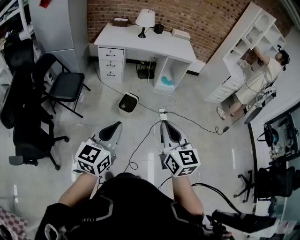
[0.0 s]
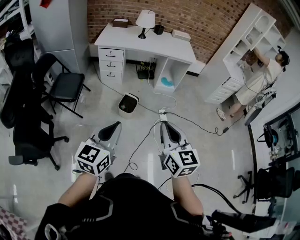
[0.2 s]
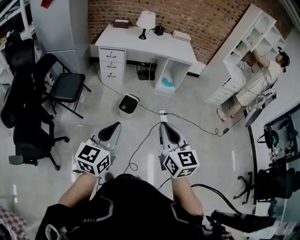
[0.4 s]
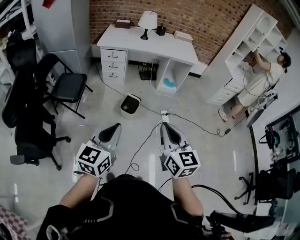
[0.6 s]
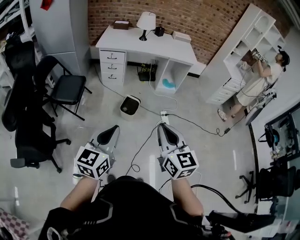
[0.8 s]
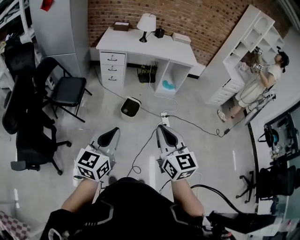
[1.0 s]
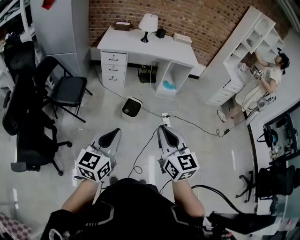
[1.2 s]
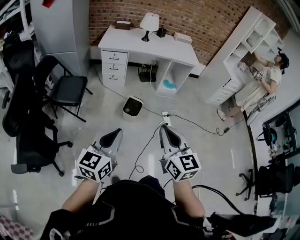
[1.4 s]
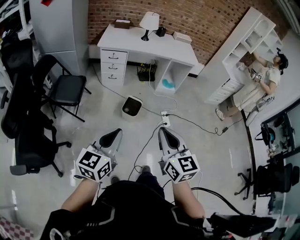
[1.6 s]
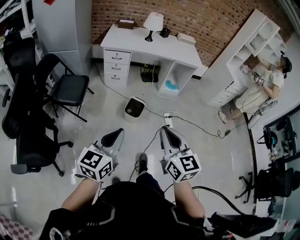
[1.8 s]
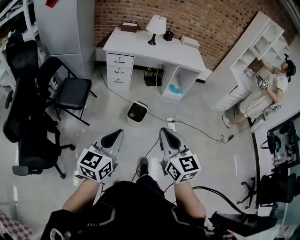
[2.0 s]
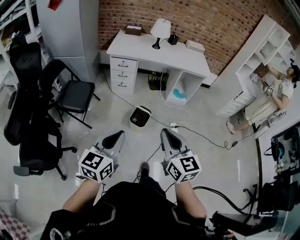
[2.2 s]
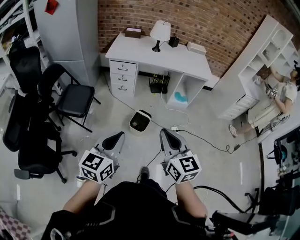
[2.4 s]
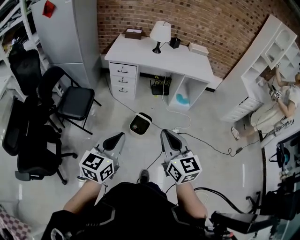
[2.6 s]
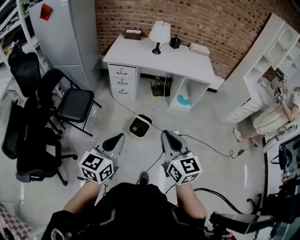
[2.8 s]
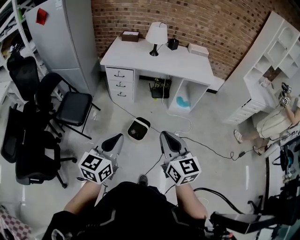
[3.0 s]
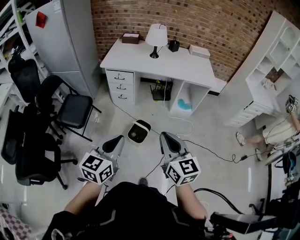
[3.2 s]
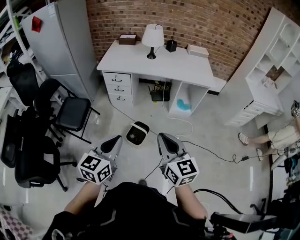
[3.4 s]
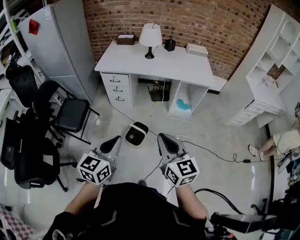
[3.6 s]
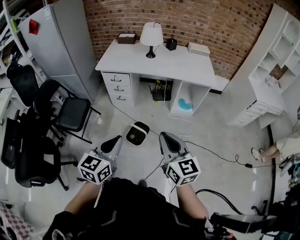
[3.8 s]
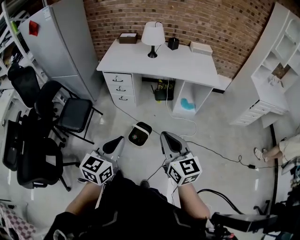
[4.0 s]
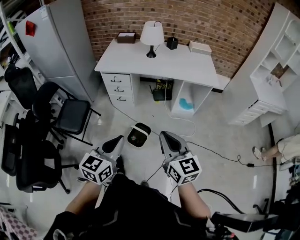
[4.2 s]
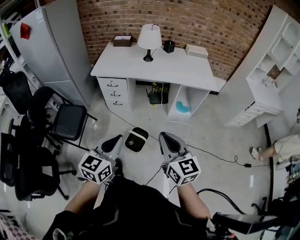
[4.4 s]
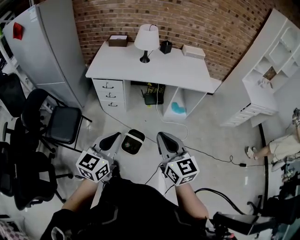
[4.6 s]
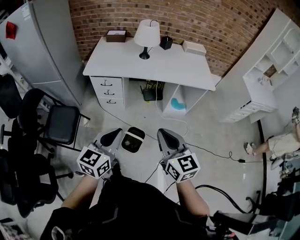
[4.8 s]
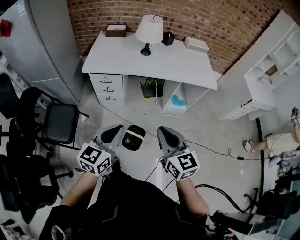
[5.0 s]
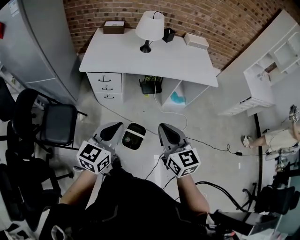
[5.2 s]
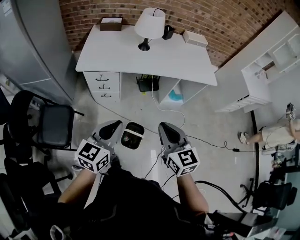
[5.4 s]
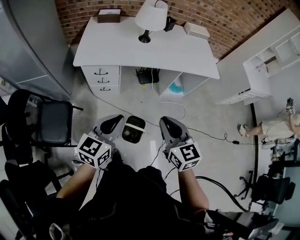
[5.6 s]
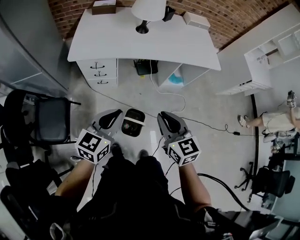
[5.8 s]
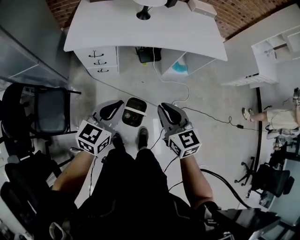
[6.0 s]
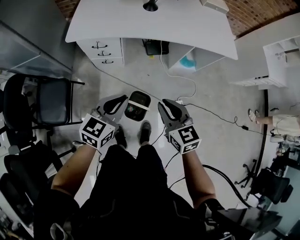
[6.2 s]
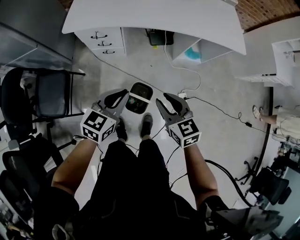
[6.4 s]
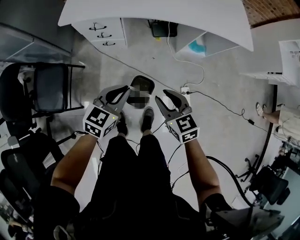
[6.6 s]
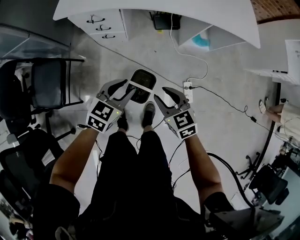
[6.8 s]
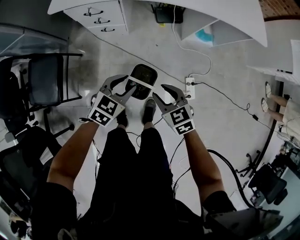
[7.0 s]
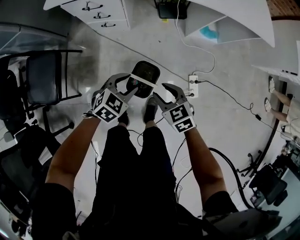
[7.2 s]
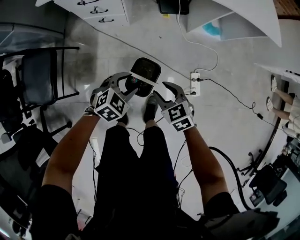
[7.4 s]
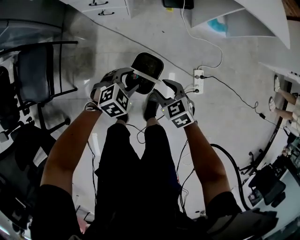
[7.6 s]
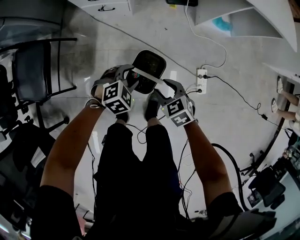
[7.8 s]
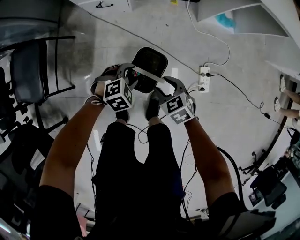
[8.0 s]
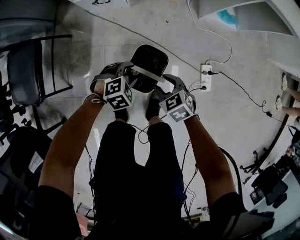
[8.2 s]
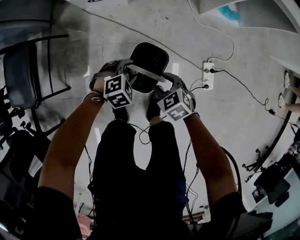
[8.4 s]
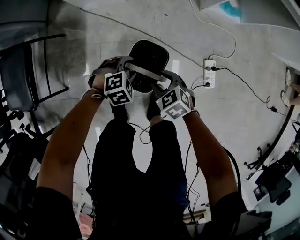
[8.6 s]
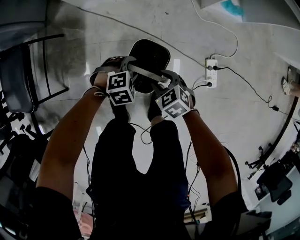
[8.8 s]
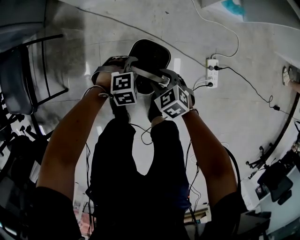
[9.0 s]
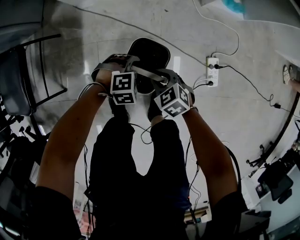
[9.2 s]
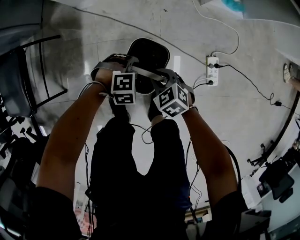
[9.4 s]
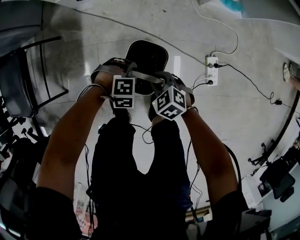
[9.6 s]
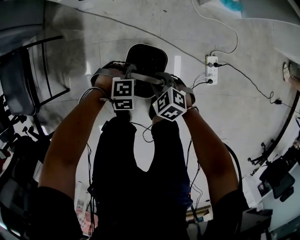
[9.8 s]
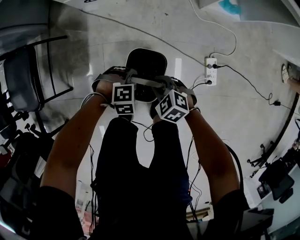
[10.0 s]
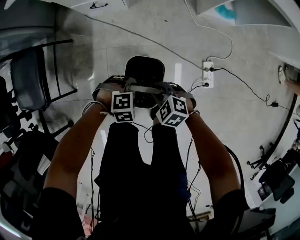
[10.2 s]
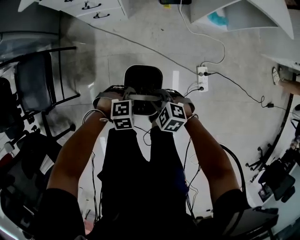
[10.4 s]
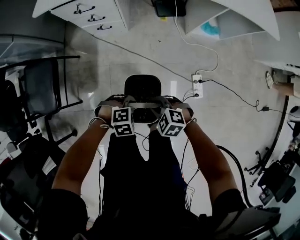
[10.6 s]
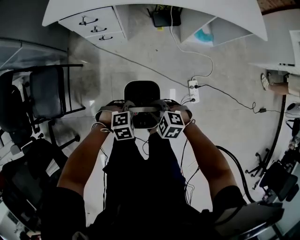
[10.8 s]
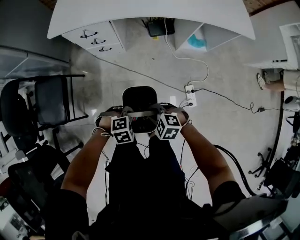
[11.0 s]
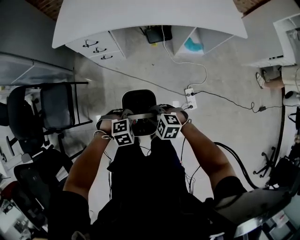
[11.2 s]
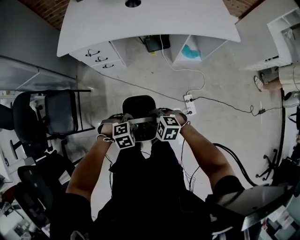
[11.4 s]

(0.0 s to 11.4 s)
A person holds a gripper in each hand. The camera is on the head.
0.0 s - 1.4 s: Both grippers travel together to the left, about 10 cm.
1.4 s - 2.8 s: Both grippers move forward, about 20 cm.
2.8 s - 4.2 s: The two grippers go approximately 15 cm forward and to the right.
4.2 s - 5.6 s: The two grippers go approximately 25 cm forward and to the left.
5.6 s - 7.2 s: The two grippers go approximately 40 cm downward. The left gripper angles its fingers downward, by about 40 degrees, and opens its fingers; the right gripper turns by some 40 degrees, and opens.
7.2 s - 8.6 s: The two grippers go roughly 30 cm downward. The left gripper rotates some 30 degrees.
8.6 s - 10.0 s: The left gripper closes its fingers. Meanwhile the right gripper closes up.
10.0 s - 11.4 s: The two grippers go some 35 cm upward.

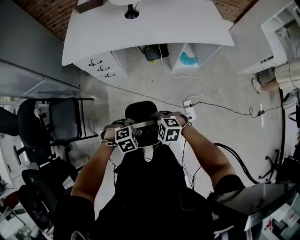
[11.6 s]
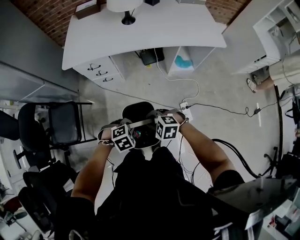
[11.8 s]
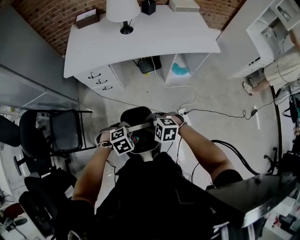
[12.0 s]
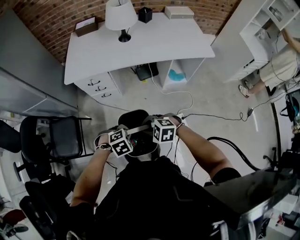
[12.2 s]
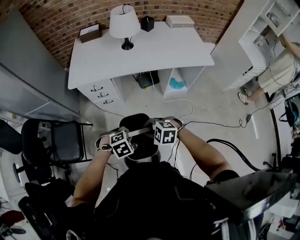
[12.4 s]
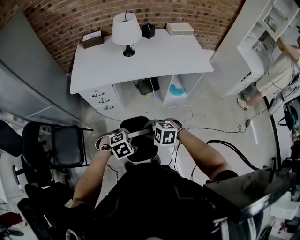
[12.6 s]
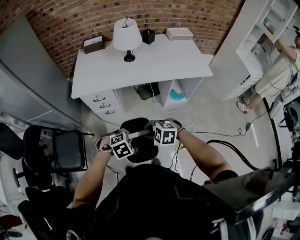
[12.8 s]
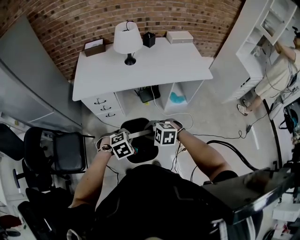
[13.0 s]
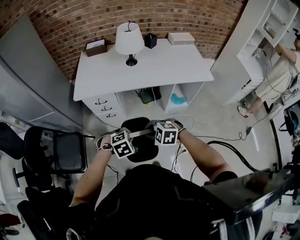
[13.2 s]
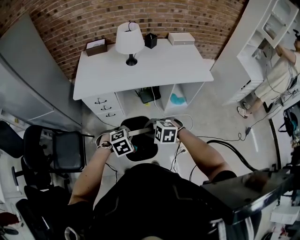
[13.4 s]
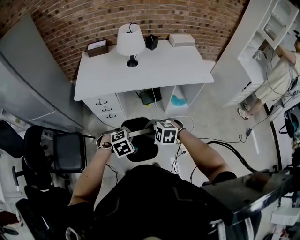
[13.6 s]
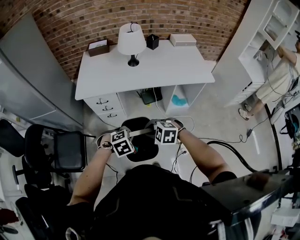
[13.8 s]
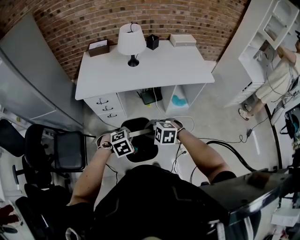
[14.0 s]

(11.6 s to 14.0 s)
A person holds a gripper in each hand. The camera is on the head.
11.6 s - 12.8 s: The grippers both shift upward by roughly 15 cm.
12.8 s - 14.0 s: The grippers move only a little.

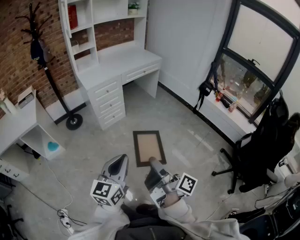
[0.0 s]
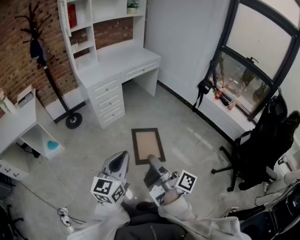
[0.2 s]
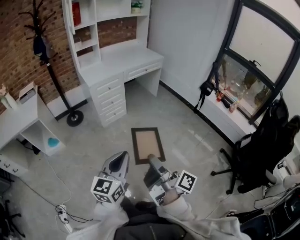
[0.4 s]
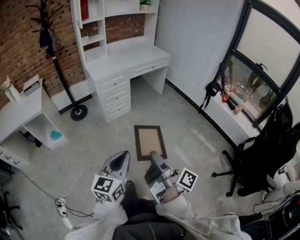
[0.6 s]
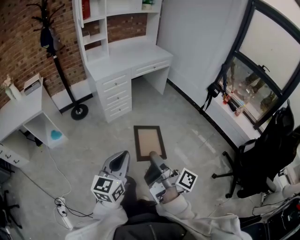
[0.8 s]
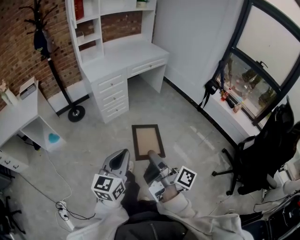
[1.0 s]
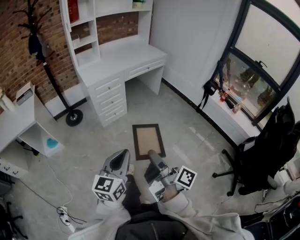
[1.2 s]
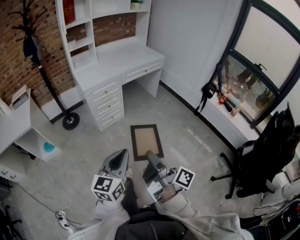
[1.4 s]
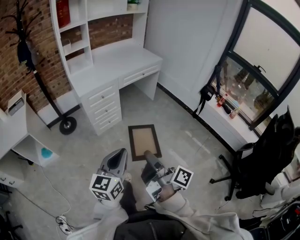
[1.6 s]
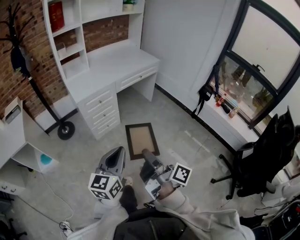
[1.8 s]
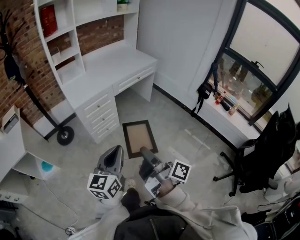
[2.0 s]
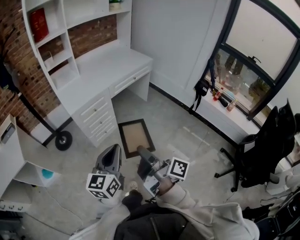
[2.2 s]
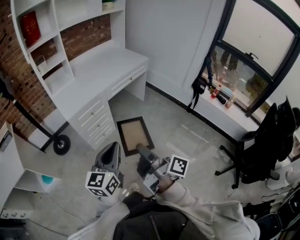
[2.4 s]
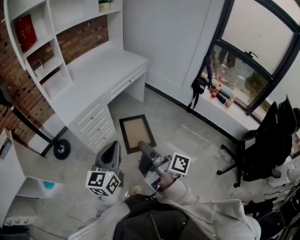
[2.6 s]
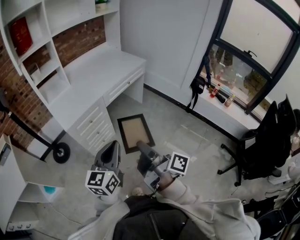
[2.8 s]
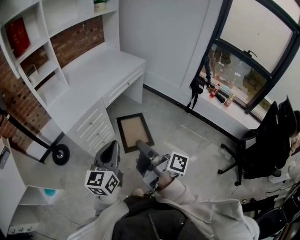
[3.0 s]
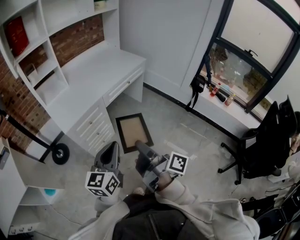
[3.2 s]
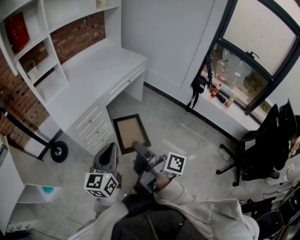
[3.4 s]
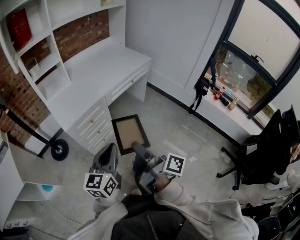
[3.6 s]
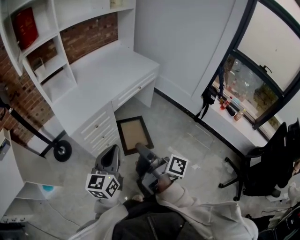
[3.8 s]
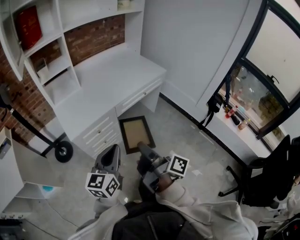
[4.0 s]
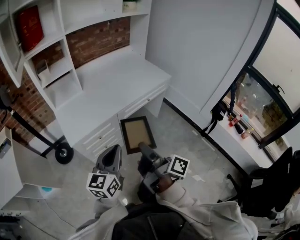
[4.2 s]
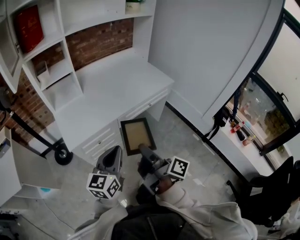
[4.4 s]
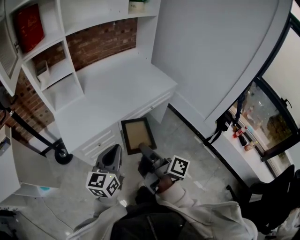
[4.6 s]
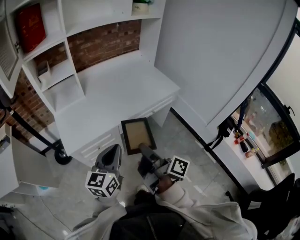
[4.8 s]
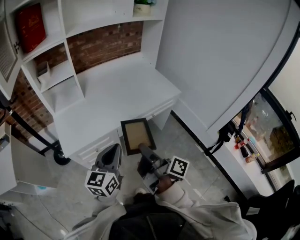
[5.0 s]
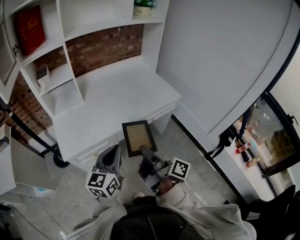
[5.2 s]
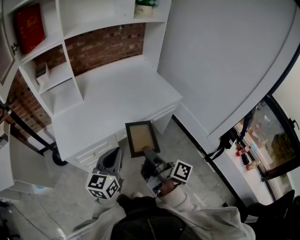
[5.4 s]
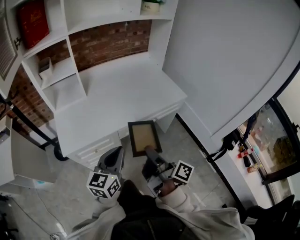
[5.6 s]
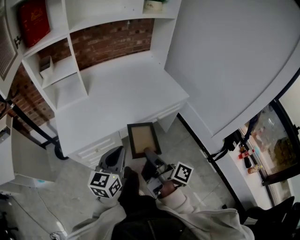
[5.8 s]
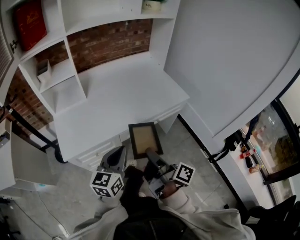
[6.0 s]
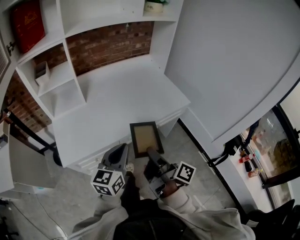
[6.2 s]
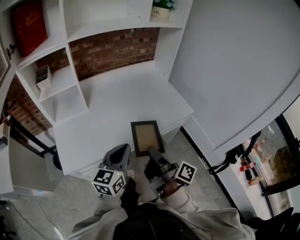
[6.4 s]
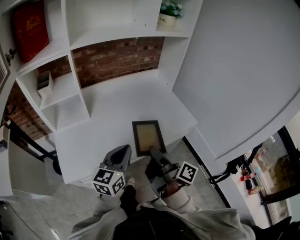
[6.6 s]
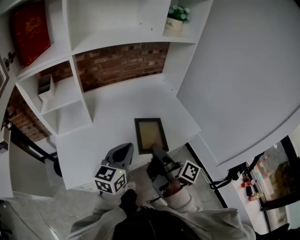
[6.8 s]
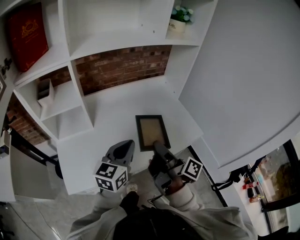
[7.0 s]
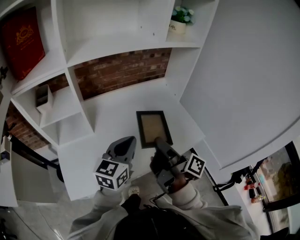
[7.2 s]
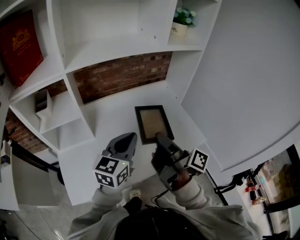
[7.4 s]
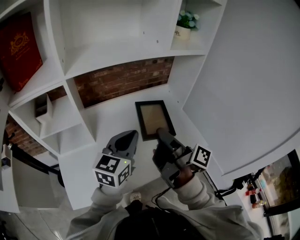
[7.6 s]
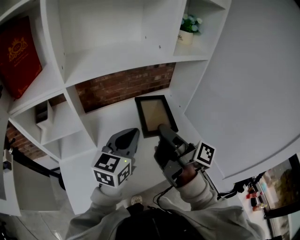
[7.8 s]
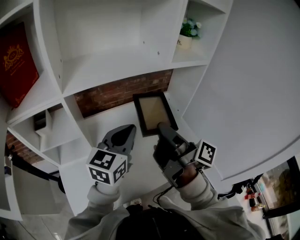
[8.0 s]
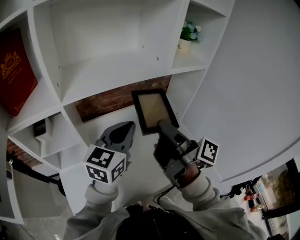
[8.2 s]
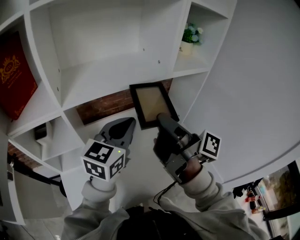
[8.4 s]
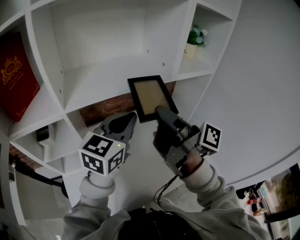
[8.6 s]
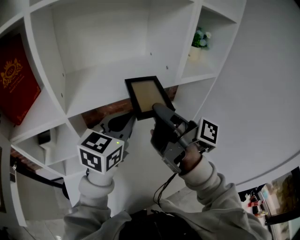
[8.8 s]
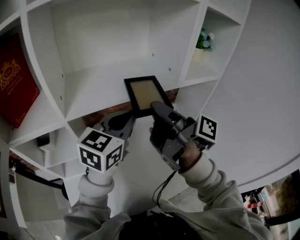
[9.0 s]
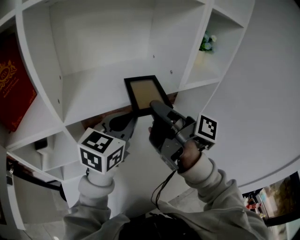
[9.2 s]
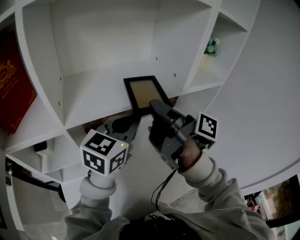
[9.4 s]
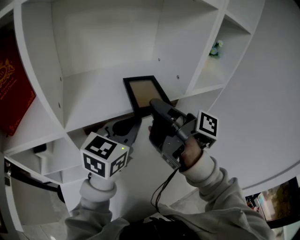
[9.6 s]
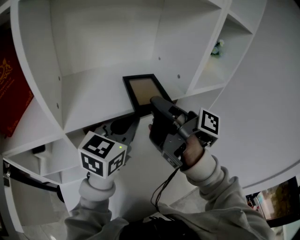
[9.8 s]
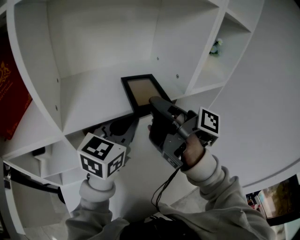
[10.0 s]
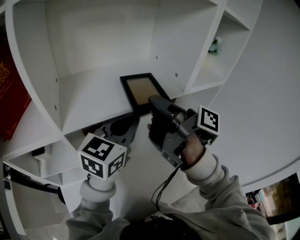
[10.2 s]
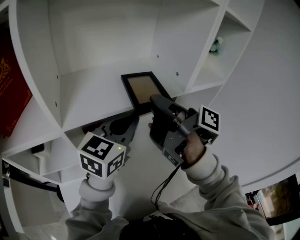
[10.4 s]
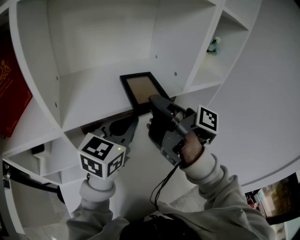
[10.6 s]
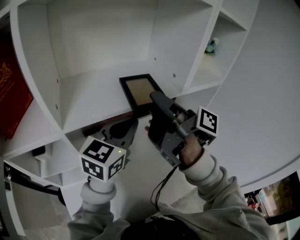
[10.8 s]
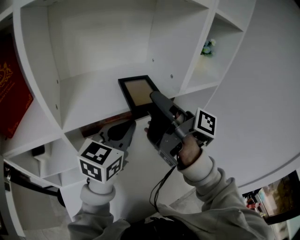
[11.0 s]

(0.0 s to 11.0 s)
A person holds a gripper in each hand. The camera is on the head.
0.0 s - 1.6 s: The left gripper moves some 20 cm.
1.6 s - 3.2 s: The left gripper ends up approximately 30 cm from where it was.
3.2 s - 4.8 s: The left gripper moves some 30 cm.
4.8 s - 6.2 s: The left gripper ends up some 15 cm from where it was.
6.2 s - 7.8 s: The left gripper moves approximately 35 cm.
7.8 s - 9.4 s: The left gripper ends up some 20 cm from where it was.
